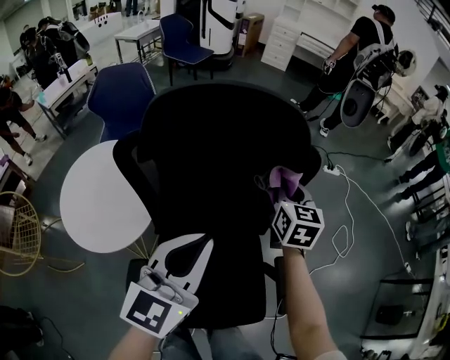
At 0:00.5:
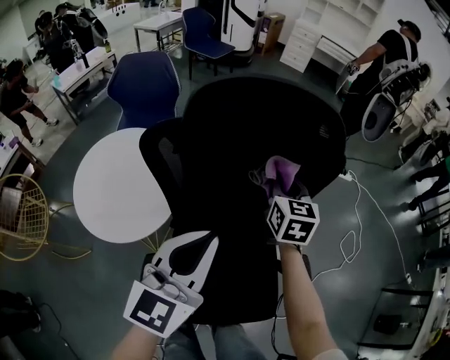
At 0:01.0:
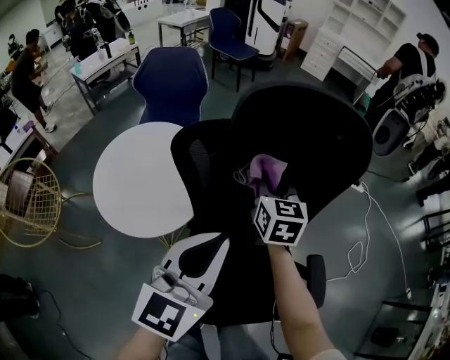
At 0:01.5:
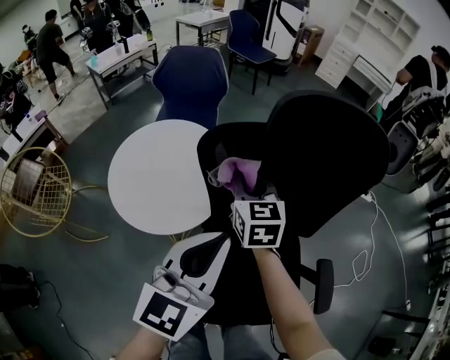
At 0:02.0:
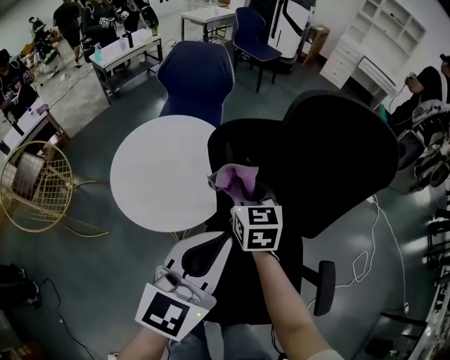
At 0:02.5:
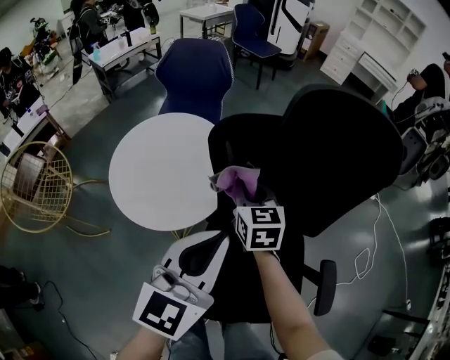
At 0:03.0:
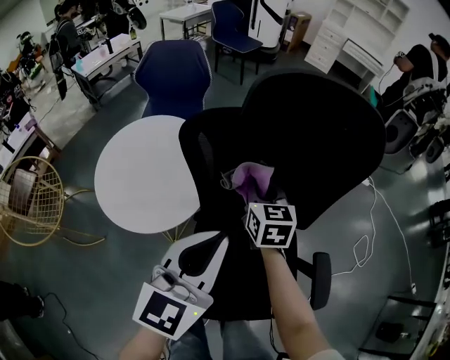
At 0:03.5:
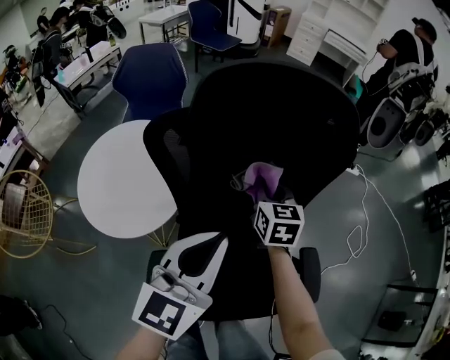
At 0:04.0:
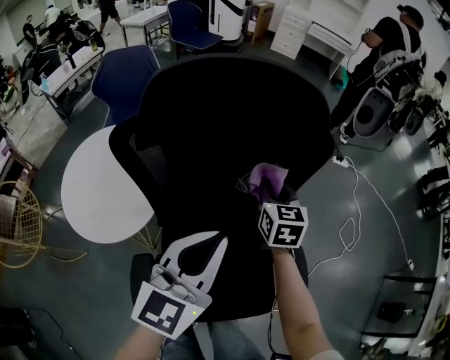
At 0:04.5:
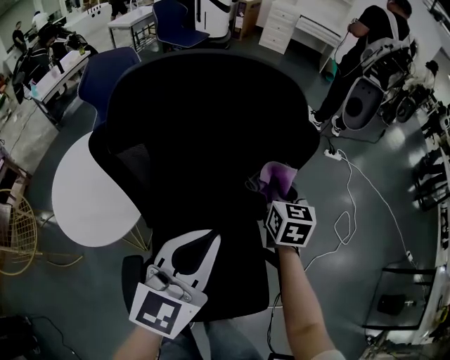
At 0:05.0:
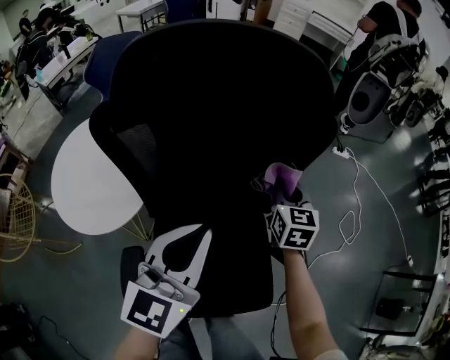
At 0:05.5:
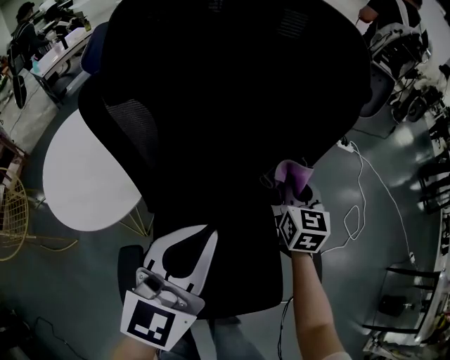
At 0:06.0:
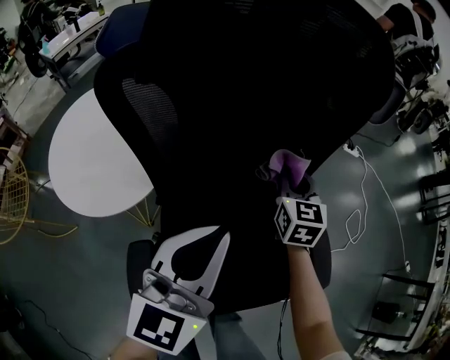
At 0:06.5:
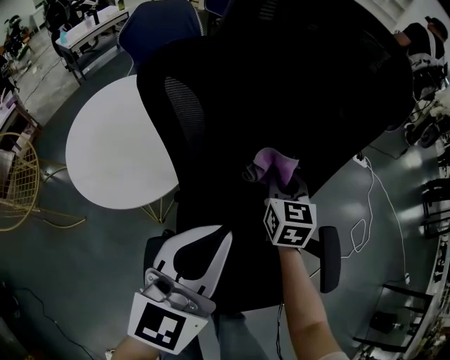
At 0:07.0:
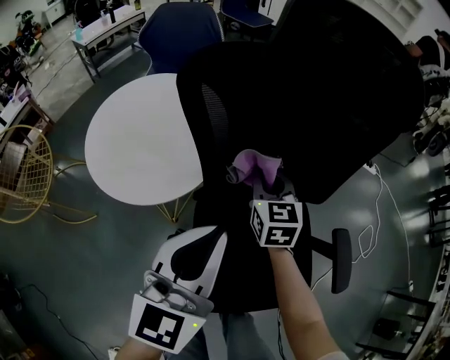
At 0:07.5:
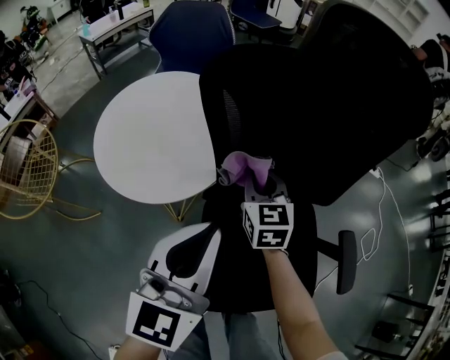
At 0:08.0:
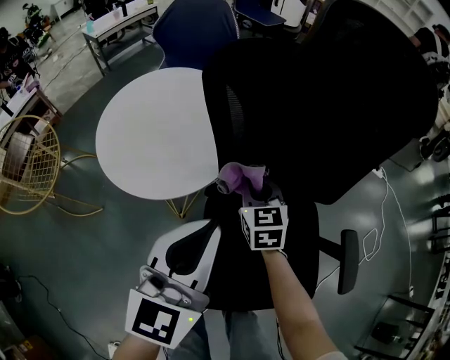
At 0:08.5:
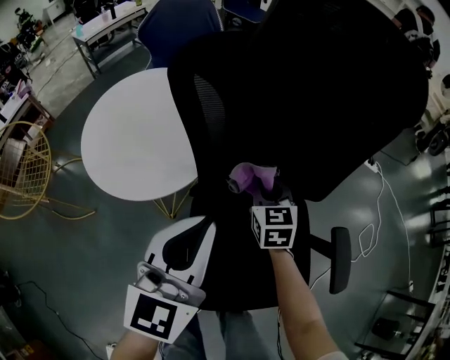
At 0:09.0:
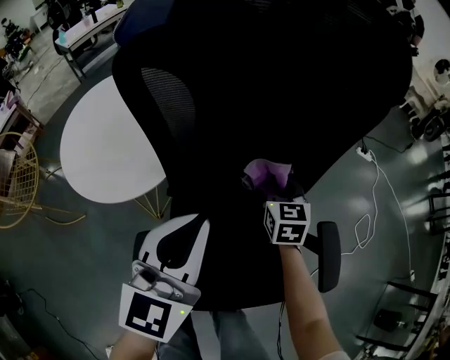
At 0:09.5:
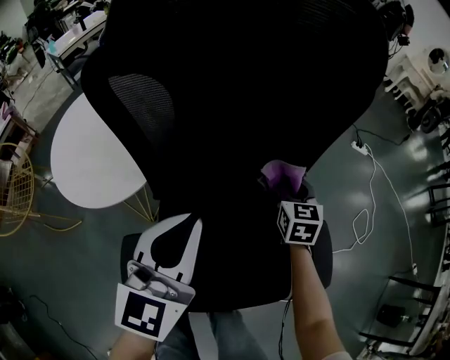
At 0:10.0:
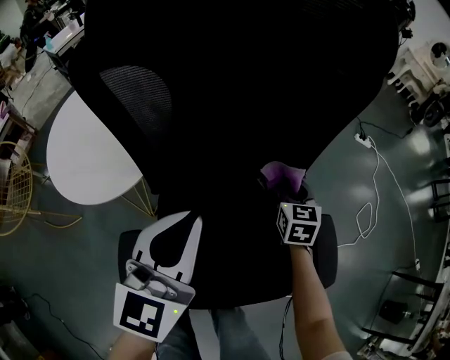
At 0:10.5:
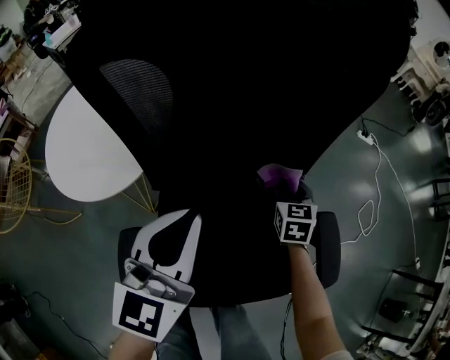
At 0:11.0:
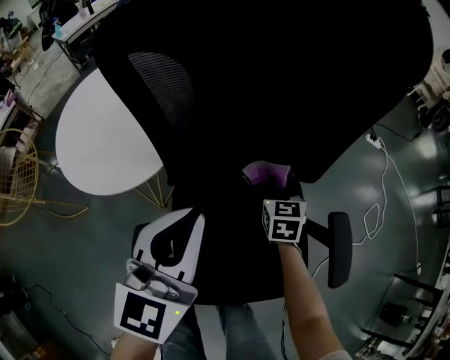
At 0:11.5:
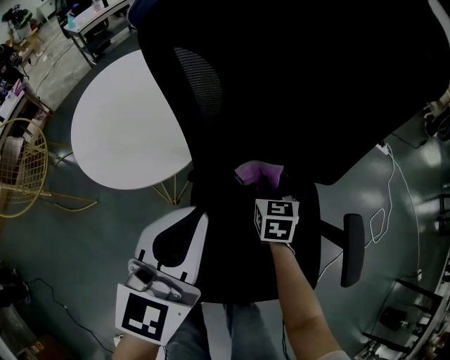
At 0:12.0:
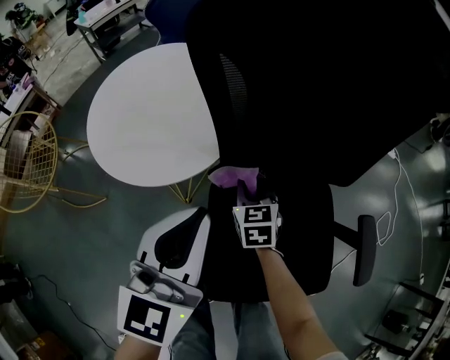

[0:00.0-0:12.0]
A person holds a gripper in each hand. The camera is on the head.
0:00.0 to 0:02.0: The right gripper moves to the left, about 35 cm, and changes its angle by approximately 30 degrees, while the left gripper is displaced to the left by some 15 cm.
0:02.0 to 0:04.0: The right gripper shifts about 30 cm to the right, and turns by approximately 20 degrees. The left gripper is displaced to the right by about 15 cm.
0:04.0 to 0:06.0: The two grippers go roughly 5 cm downward.
0:06.0 to 0:08.0: The right gripper goes approximately 25 cm to the left, and changes its angle by approximately 20 degrees. Meanwhile the left gripper heads to the left, covering roughly 15 cm.
0:08.0 to 0:10.0: The right gripper heads to the right, covering about 30 cm. Meanwhile the left gripper moves to the right, about 10 cm.
0:10.0 to 0:12.0: The right gripper moves to the left, approximately 30 cm; the left gripper travels to the left by approximately 15 cm.

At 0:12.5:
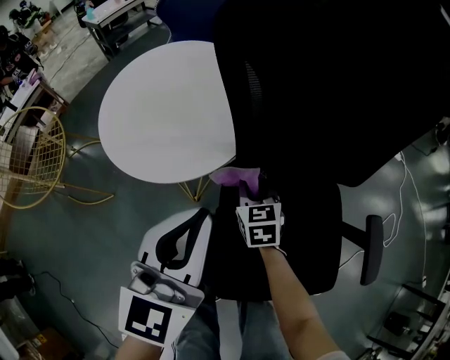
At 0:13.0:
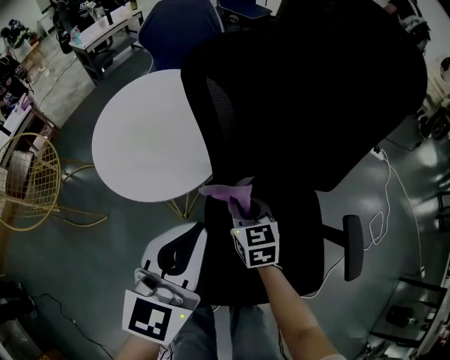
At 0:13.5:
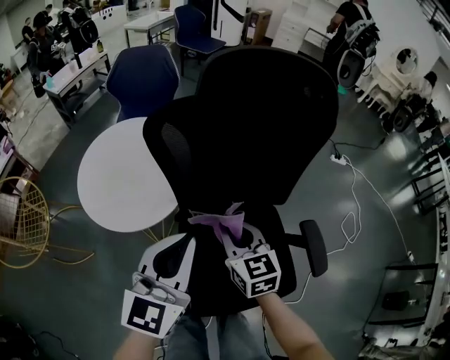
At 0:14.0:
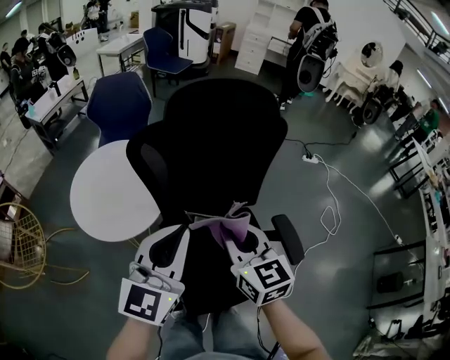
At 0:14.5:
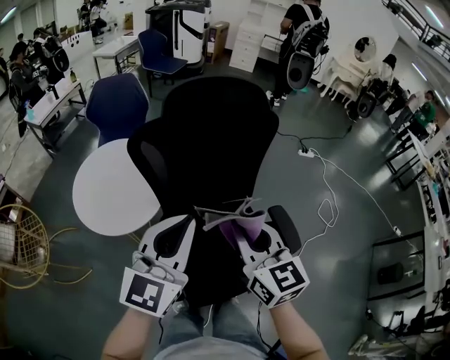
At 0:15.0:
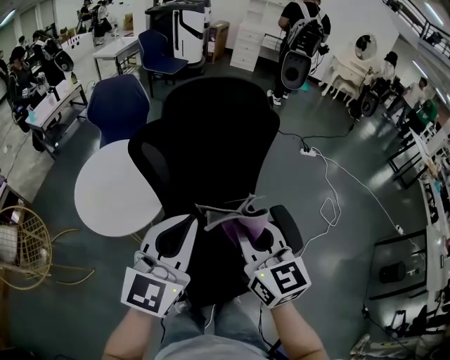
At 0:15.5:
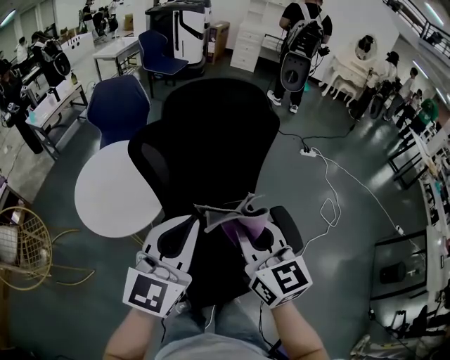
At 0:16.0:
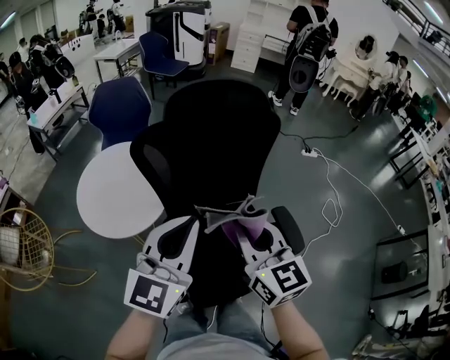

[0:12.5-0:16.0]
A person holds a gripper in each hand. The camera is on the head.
0:12.5 to 0:14.5: The right gripper is displaced upward by approximately 40 cm, and rotates approximately 30 degrees; the left gripper moves upward and to the right, approximately 20 cm, and swivels roughly 30 degrees.
0:14.5 to 0:16.0: There are only small adjustments of the grippers.

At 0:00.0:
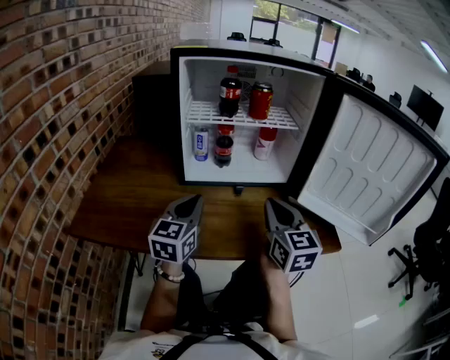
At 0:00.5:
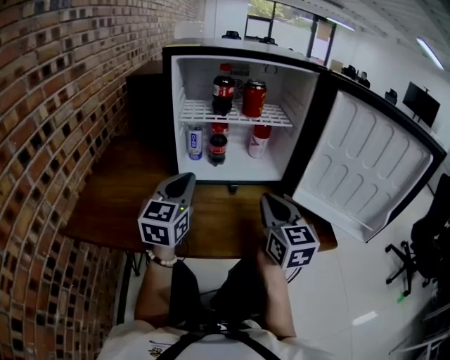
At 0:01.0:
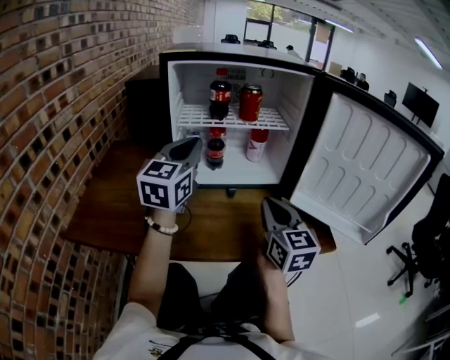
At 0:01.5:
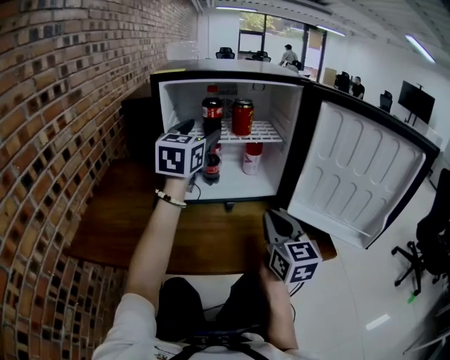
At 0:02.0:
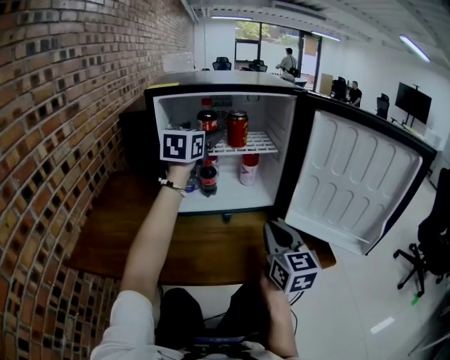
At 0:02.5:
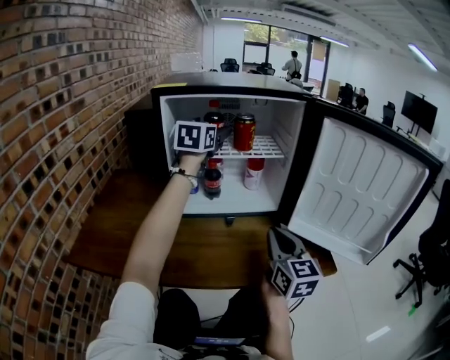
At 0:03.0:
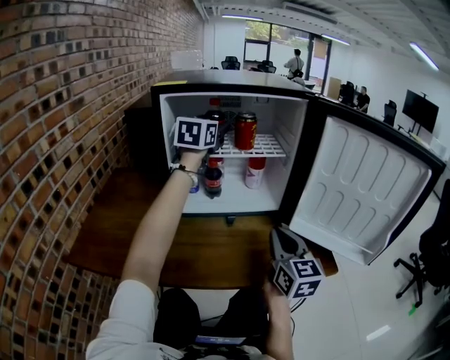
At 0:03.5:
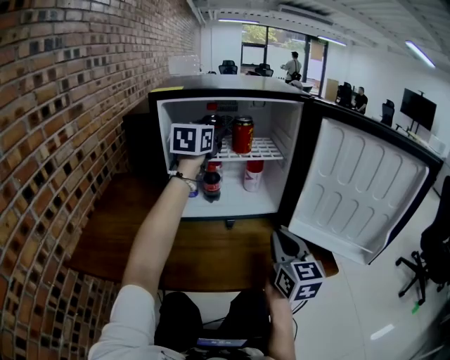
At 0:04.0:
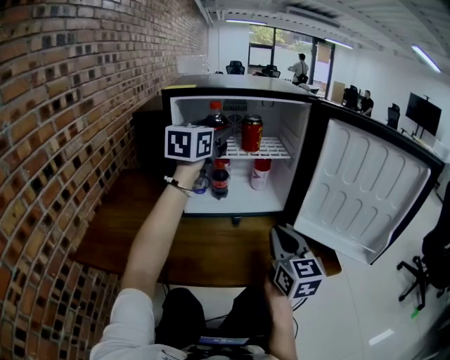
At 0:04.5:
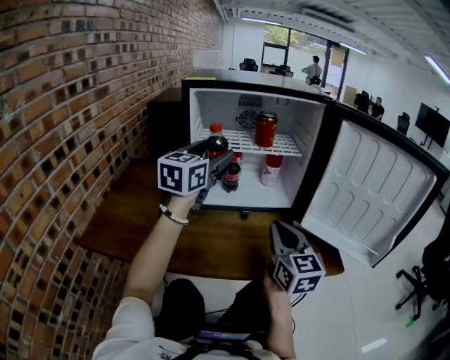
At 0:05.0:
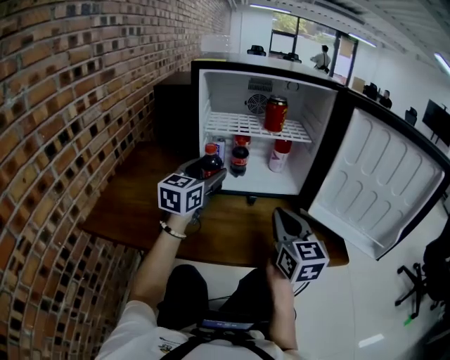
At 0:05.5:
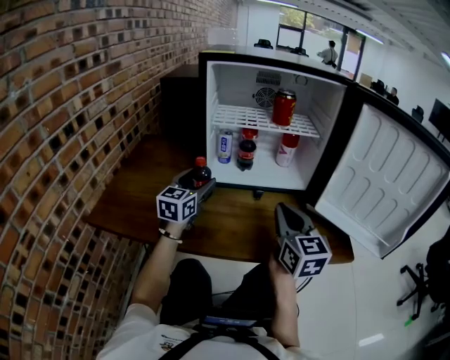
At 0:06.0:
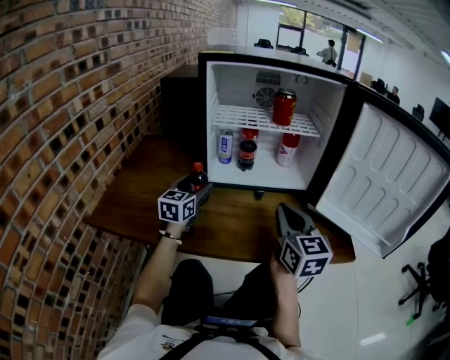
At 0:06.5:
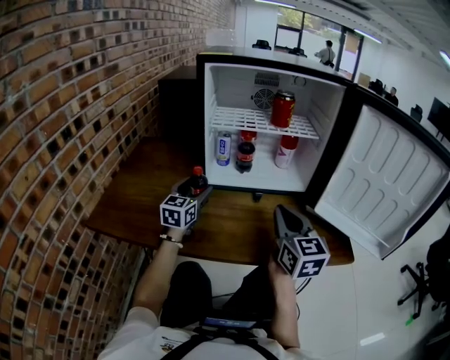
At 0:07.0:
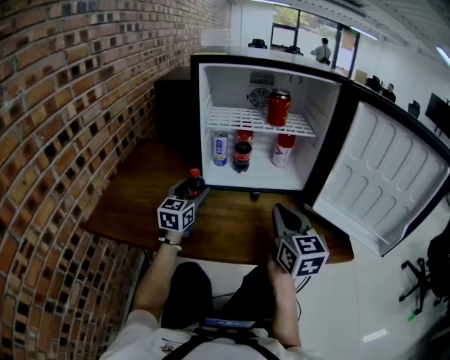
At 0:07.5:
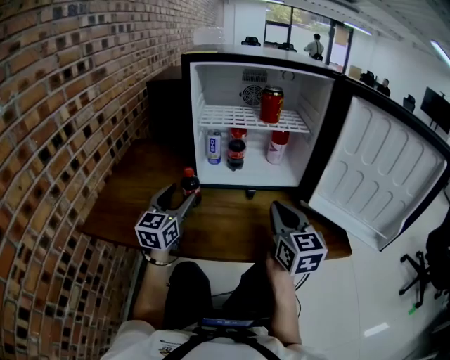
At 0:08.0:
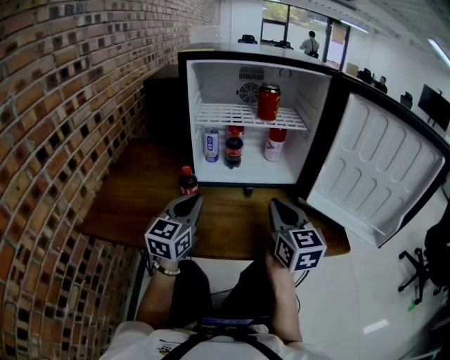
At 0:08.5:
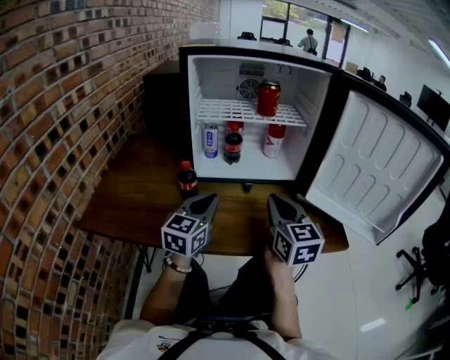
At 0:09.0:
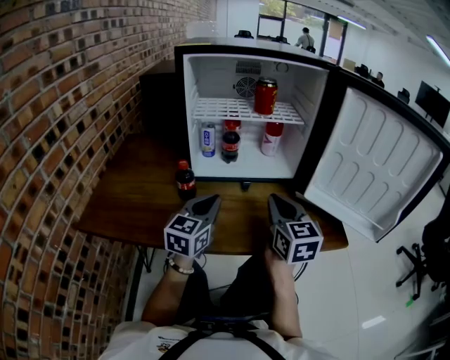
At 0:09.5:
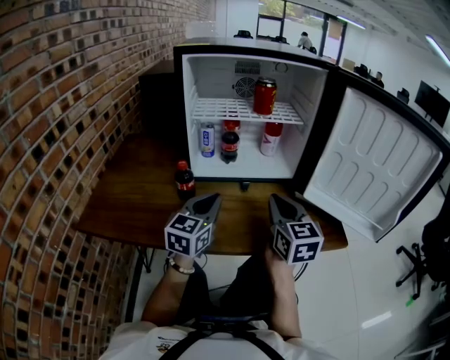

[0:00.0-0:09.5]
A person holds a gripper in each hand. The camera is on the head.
0:00.0 to 0:02.0: The left gripper travels forward and upward by approximately 30 cm, and opens its fingers.
0:02.0 to 0:04.0: The grippers make only small movements.
0:04.0 to 0:05.5: The right gripper moves to the left, roughly 5 cm. Meanwhile the left gripper goes about 30 cm downward and to the left.
0:05.5 to 0:07.5: The left gripper moves backward, roughly 5 cm.
0:07.5 to 0:09.5: The left gripper heads to the right, covering approximately 15 cm, and closes its fingers.

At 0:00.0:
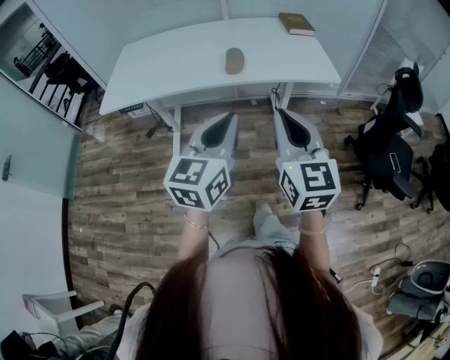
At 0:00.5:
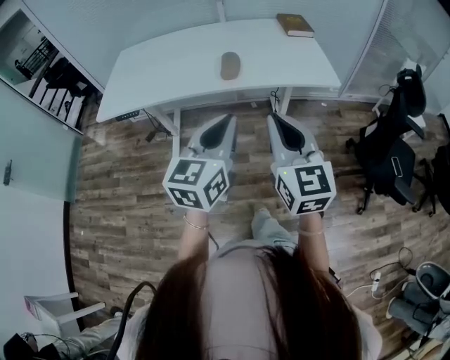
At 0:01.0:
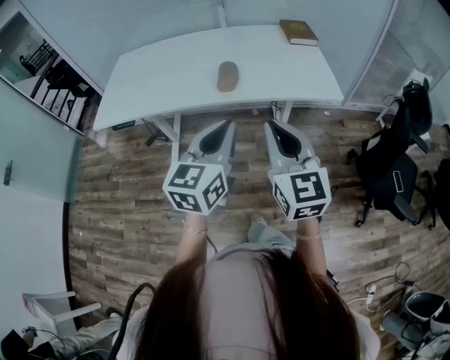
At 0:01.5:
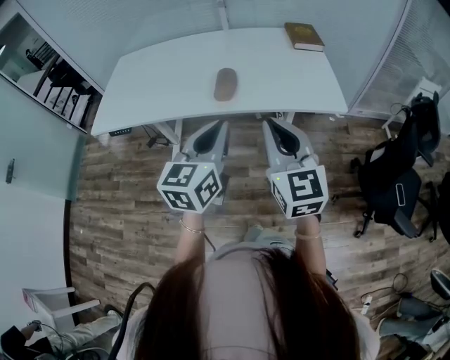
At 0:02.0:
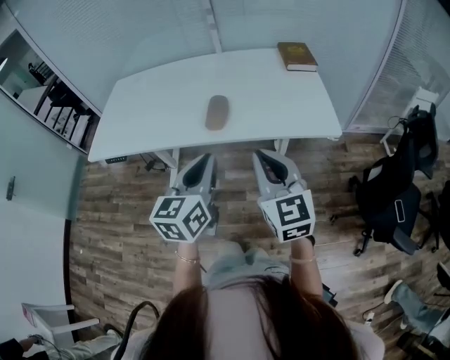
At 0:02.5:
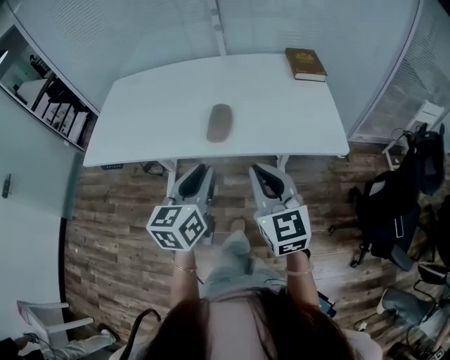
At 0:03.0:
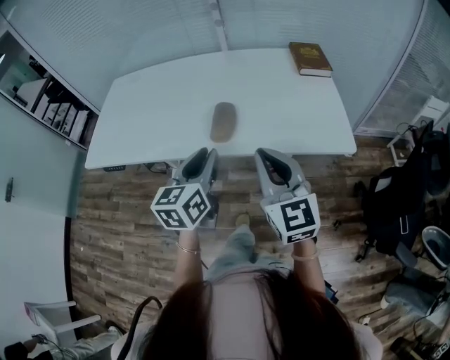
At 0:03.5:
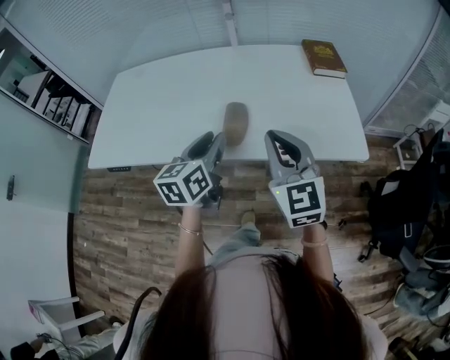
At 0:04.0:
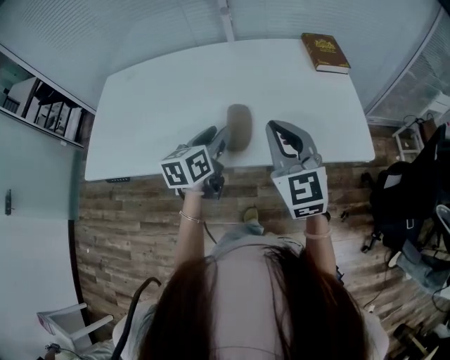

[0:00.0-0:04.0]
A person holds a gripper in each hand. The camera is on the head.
0:00.0 to 0:02.0: Both grippers travel together forward, approximately 20 cm.
0:02.0 to 0:04.0: Both grippers move forward, about 25 cm. The left gripper opens.
